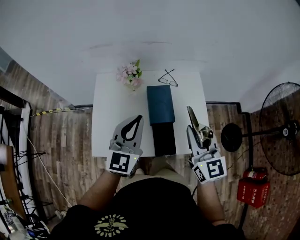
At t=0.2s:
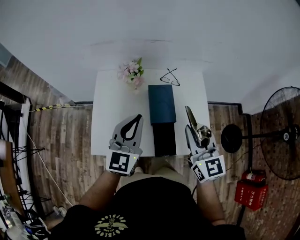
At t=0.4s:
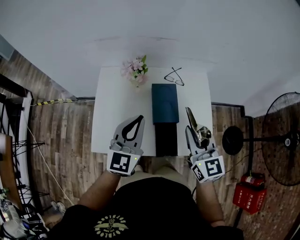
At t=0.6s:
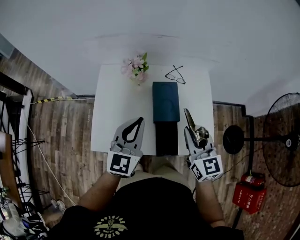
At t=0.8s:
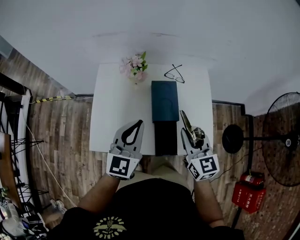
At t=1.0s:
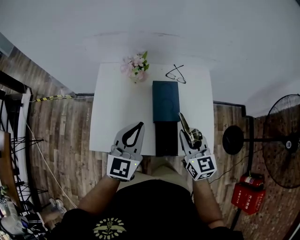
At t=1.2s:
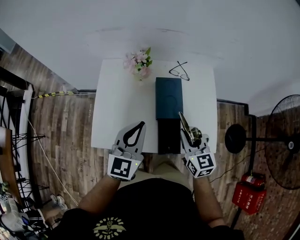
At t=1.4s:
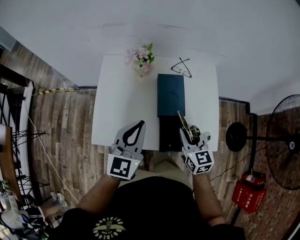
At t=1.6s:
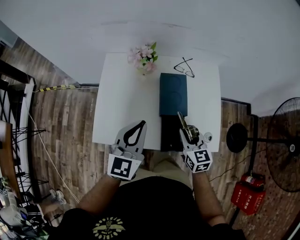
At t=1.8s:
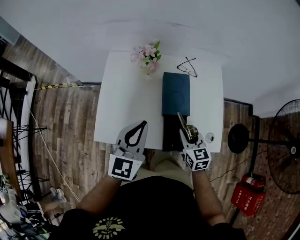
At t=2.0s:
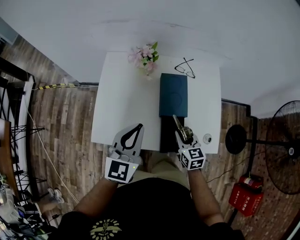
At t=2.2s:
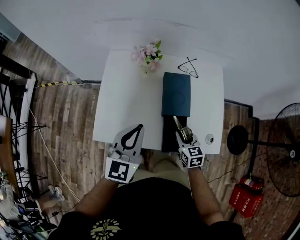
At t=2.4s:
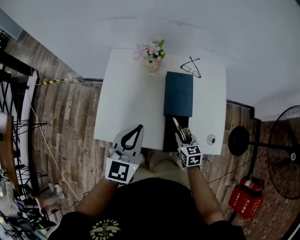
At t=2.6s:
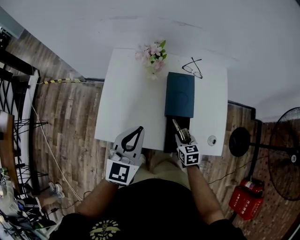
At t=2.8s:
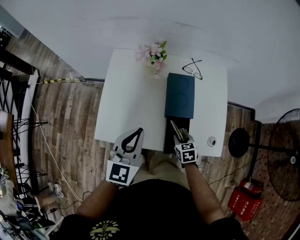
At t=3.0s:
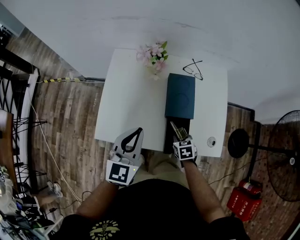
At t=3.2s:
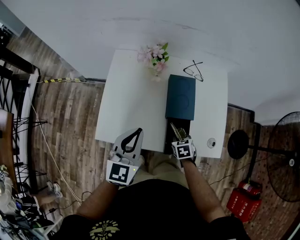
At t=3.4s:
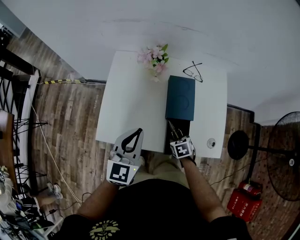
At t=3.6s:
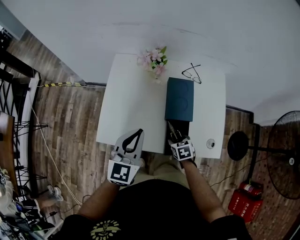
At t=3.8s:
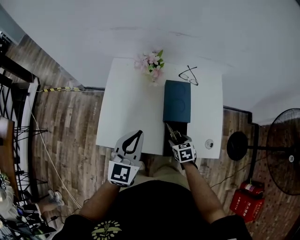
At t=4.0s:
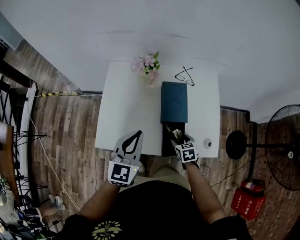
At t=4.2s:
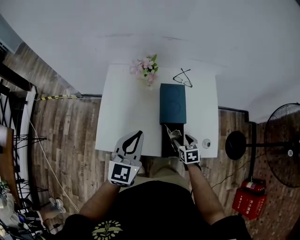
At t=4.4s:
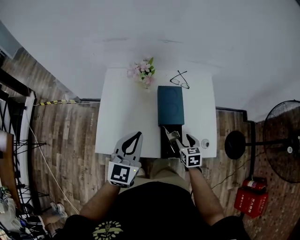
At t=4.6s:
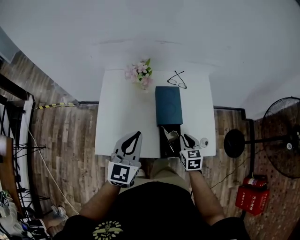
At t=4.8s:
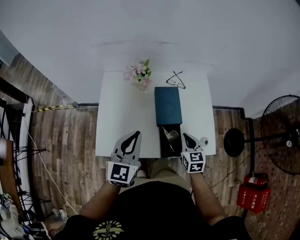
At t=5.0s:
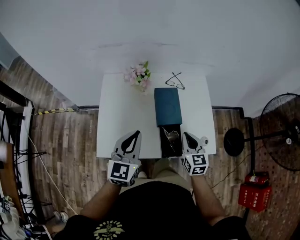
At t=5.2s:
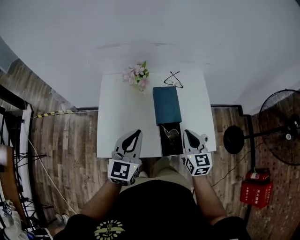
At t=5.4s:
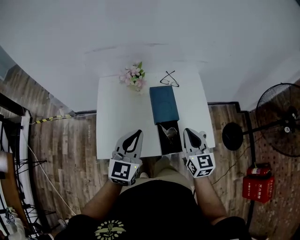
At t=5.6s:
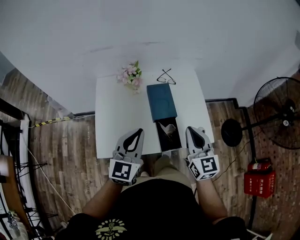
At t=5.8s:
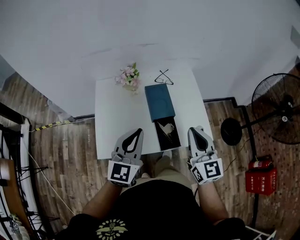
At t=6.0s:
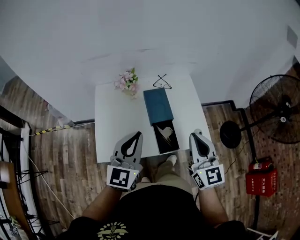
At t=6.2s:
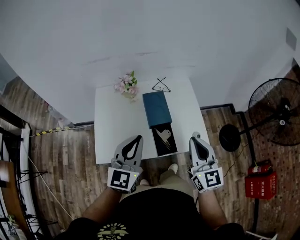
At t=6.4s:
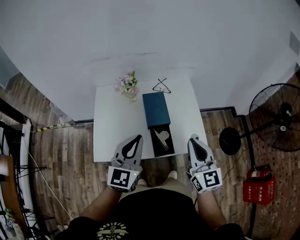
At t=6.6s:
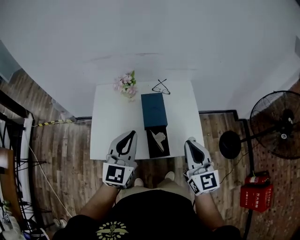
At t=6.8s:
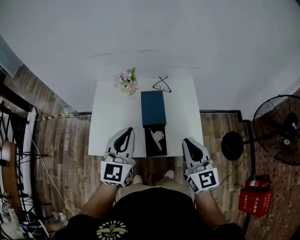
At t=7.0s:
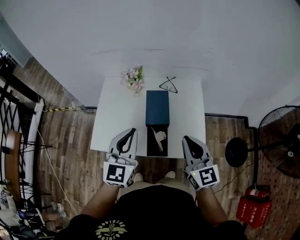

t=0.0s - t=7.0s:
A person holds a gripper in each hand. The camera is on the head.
t=0.0s - t=1.4s: The left gripper goes approximately 10 cm downward. Meanwhile the right gripper heads downward, covering approximately 20 cm, and turns by approximately 20 degrees.
t=1.4s - t=2.8s: The right gripper travels downward by about 20 cm, and turns by about 30 degrees, while the left gripper shifts by approximately 5 cm.
t=2.8s - t=4.2s: The right gripper moves approximately 5 cm, and opens up.
t=4.2s - t=5.6s: The left gripper moves about 5 cm; the right gripper heads upward, covering approximately 30 cm, tips its fingers upward by approximately 50 degrees, and closes up.
t=5.6s - t=7.0s: Both grippers move to the right, about 10 cm.

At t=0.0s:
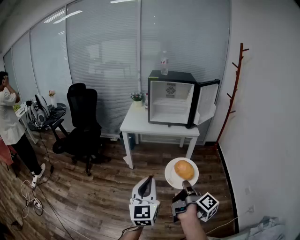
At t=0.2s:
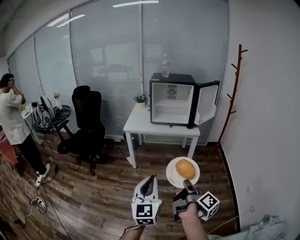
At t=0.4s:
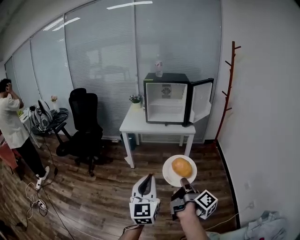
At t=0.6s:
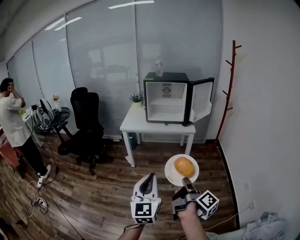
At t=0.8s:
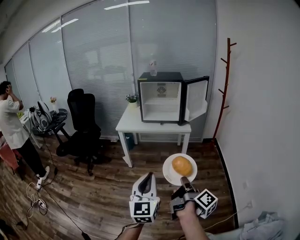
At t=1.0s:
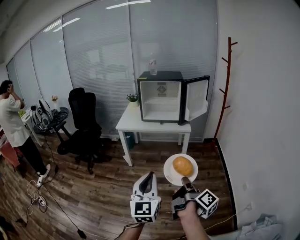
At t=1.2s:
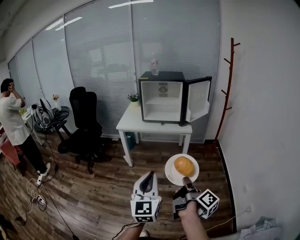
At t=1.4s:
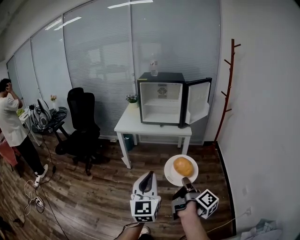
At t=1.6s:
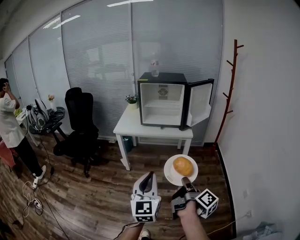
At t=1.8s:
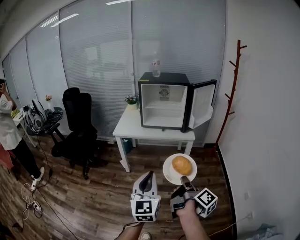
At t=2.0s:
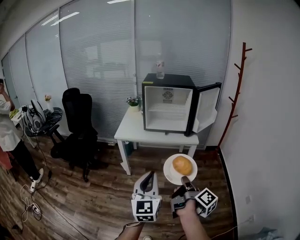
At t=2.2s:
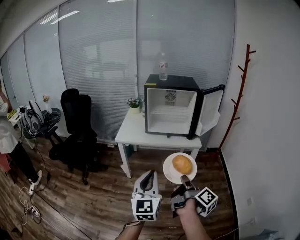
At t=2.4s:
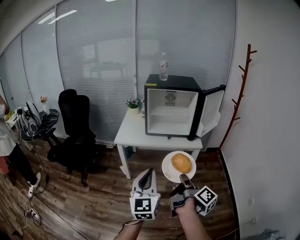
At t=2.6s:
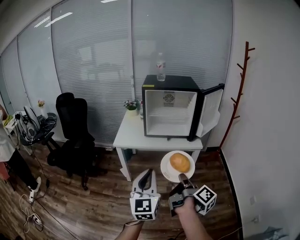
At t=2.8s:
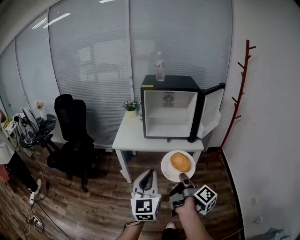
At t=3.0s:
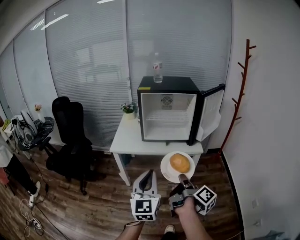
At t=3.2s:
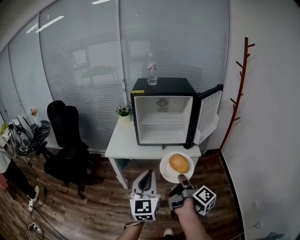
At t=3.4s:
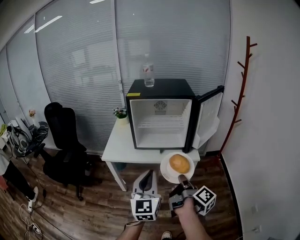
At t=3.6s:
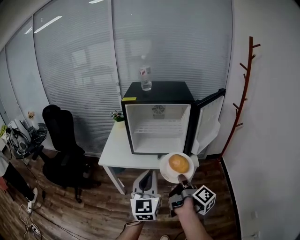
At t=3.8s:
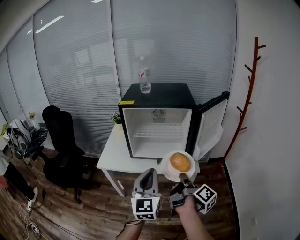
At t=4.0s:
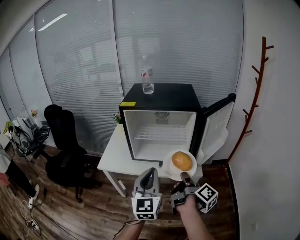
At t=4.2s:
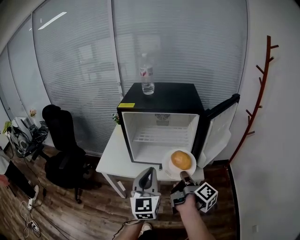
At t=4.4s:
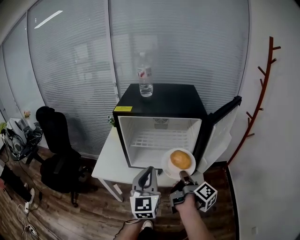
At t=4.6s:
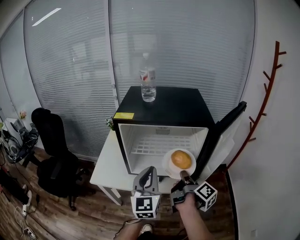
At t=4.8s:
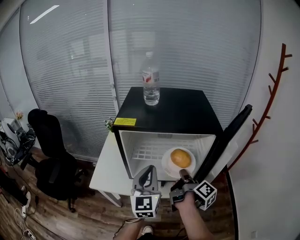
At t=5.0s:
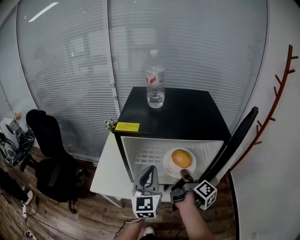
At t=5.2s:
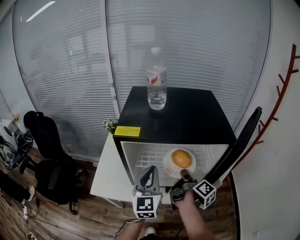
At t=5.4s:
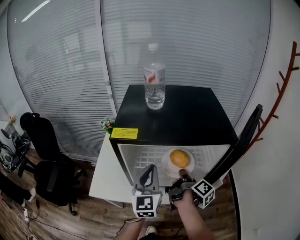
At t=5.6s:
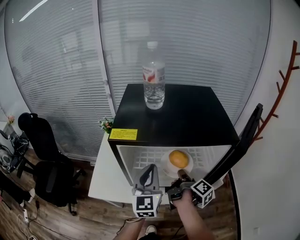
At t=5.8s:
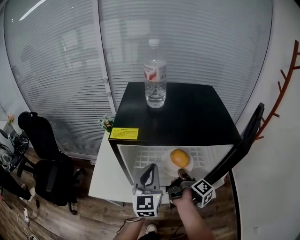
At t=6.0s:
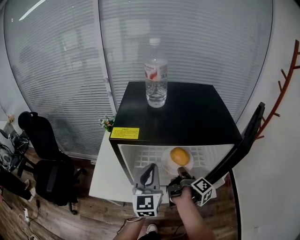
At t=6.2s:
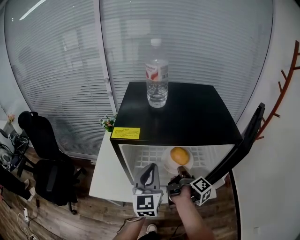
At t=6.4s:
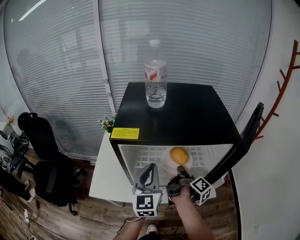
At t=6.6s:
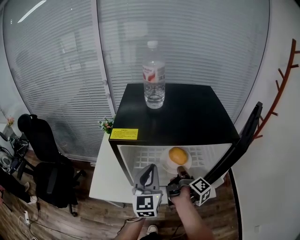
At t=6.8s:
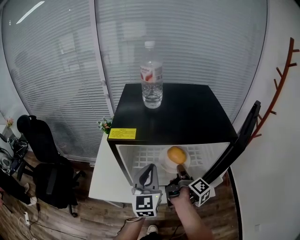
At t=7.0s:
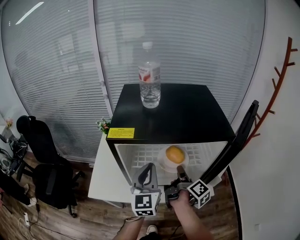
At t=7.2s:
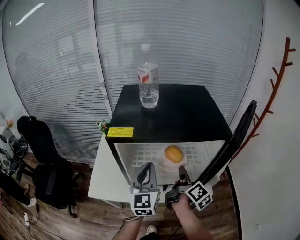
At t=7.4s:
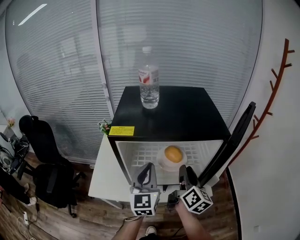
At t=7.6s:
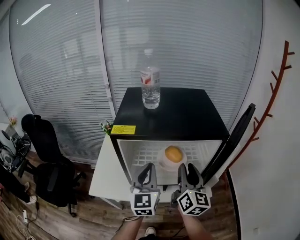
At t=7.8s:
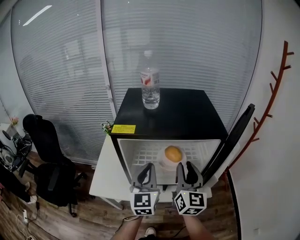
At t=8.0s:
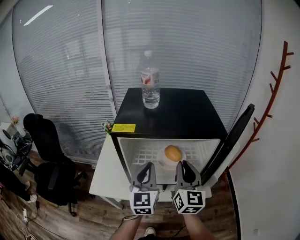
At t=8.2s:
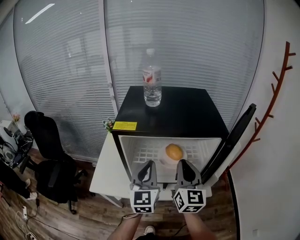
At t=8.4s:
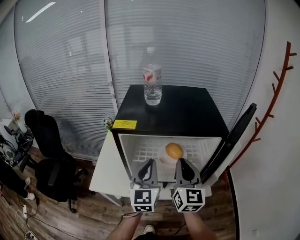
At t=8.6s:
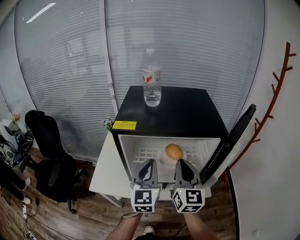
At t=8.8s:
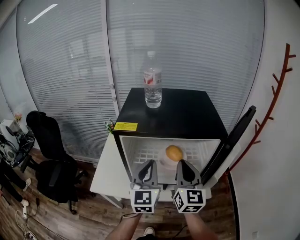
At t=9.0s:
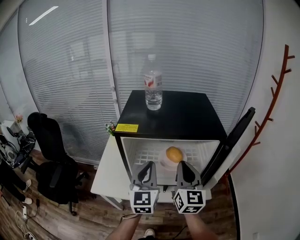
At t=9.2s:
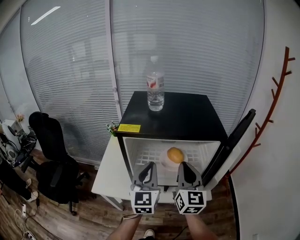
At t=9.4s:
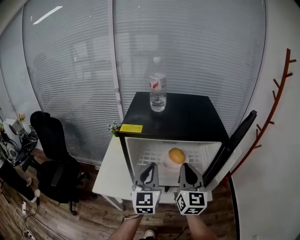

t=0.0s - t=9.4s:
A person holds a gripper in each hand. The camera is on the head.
t=0.0s - t=1.6s: The left gripper changes place by approximately 10 cm.
t=1.6s - t=3.2s: The left gripper shifts by about 30 cm.
t=3.2s - t=4.8s: The left gripper ends up some 35 cm from where it was.
t=4.8s - t=6.2s: The left gripper ends up about 10 cm from where it was.

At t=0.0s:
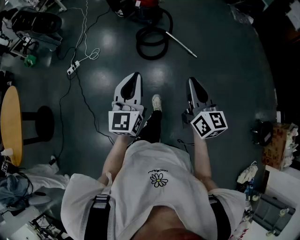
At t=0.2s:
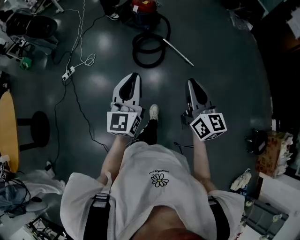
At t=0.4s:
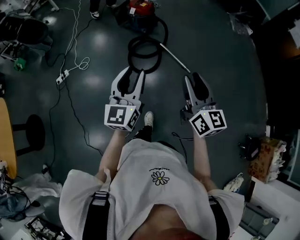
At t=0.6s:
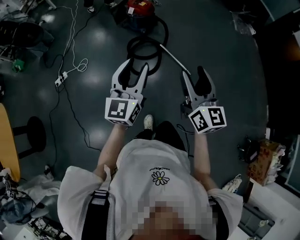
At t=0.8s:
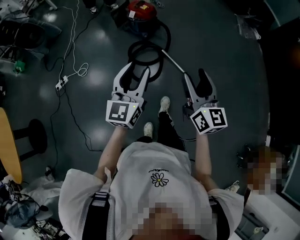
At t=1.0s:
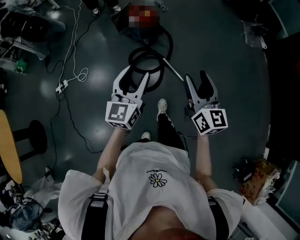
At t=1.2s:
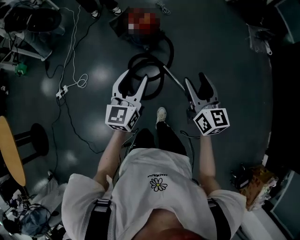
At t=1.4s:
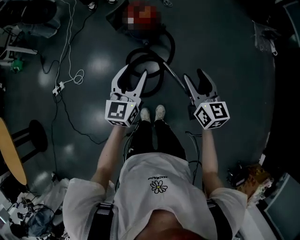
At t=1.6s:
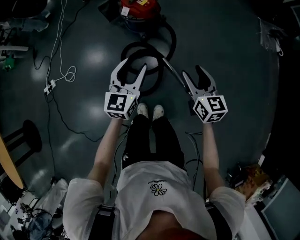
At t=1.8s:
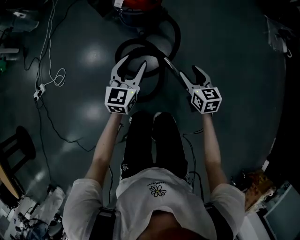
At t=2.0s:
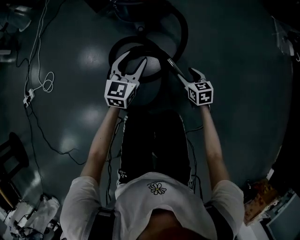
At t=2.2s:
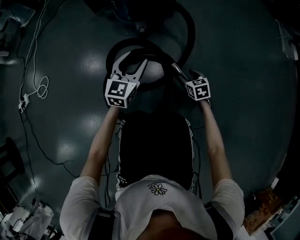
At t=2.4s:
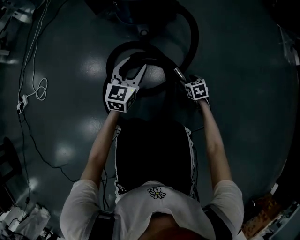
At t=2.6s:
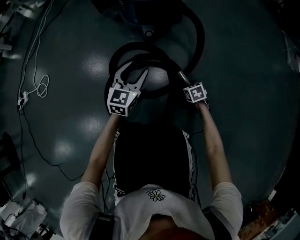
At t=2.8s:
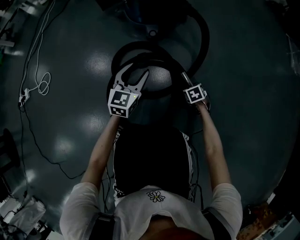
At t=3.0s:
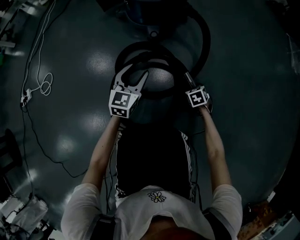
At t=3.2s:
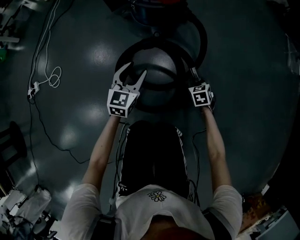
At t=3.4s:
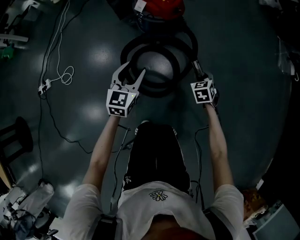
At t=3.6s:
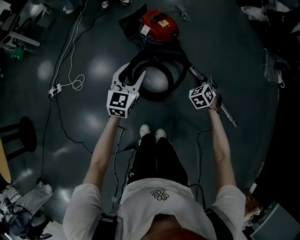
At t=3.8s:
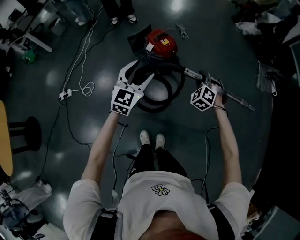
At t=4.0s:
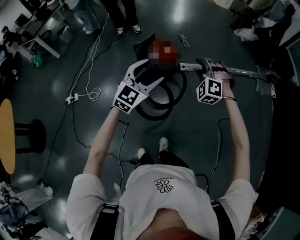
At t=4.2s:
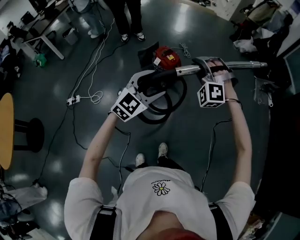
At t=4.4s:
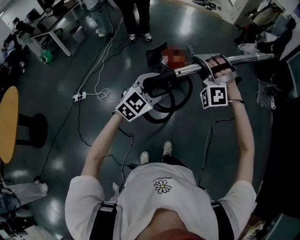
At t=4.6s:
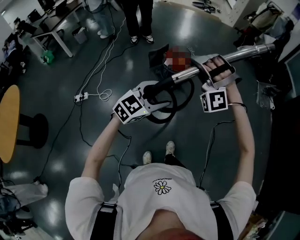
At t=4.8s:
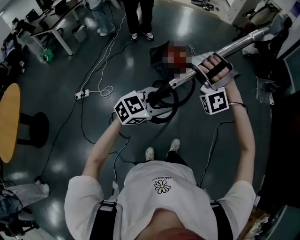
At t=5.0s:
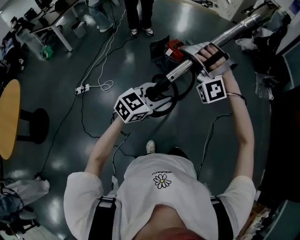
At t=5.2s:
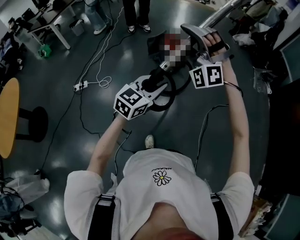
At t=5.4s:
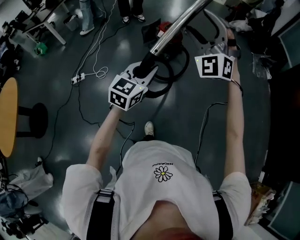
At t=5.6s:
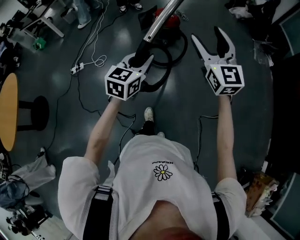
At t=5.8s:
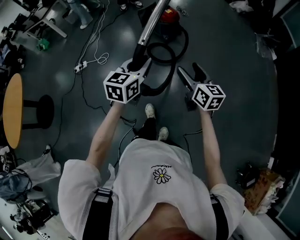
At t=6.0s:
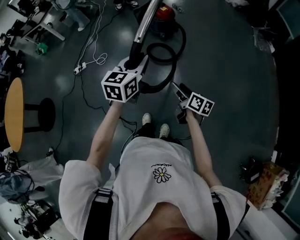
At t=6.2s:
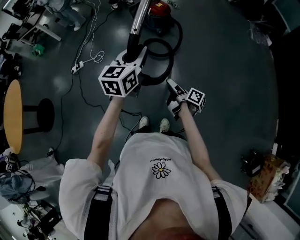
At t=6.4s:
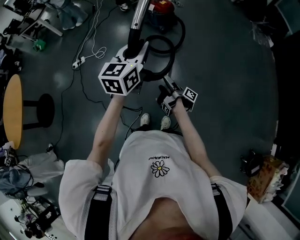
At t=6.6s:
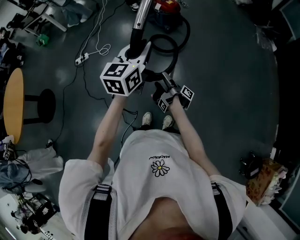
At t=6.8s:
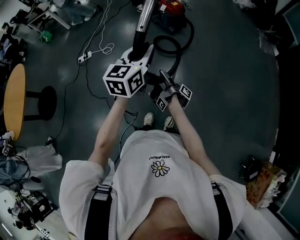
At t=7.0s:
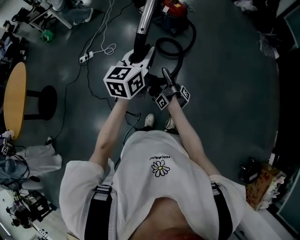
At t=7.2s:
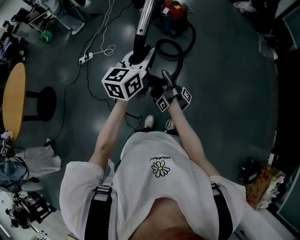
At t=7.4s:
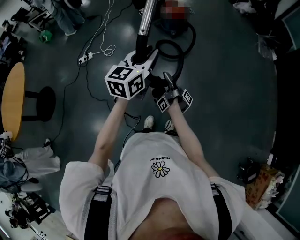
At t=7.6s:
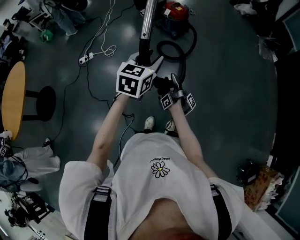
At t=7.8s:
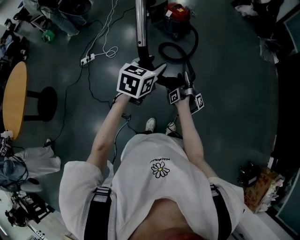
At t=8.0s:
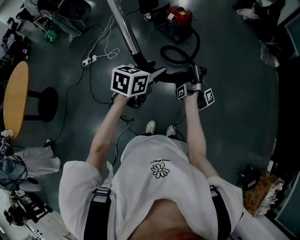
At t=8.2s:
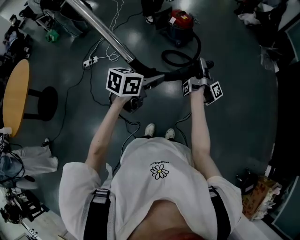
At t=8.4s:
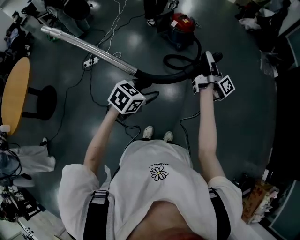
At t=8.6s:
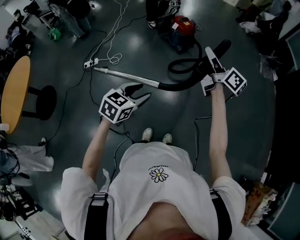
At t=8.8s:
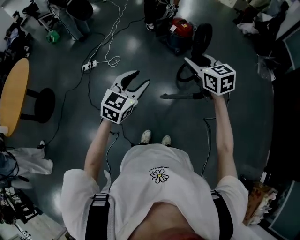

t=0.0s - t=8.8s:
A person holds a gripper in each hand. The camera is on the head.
t=0.0s - t=1.4s: The pair of grippers is taken forward, roughly 80 cm. The right gripper opens up, while the left gripper opens its fingers.
t=1.4s - t=3.0s: The grippers both shift downward by about 80 cm. The right gripper tips its fingers downward by approximately 50 degrees, and closes.
t=3.0s - t=4.4s: The grippers both shift upward by approximately 1 m. The right gripper rotates around the line of its fingers by roughly 90 degrees, counterclockwise from behind, while the left gripper turns by roughly 30 degrees.
t=4.4s - t=5.8s: The grippers both shift backward by about 35 cm. The left gripper turns by some 40 degrees, and closes. The right gripper twists approximately 120 degrees clockwise, seen from behind, and opens up.
t=5.8s - t=7.4s: The right gripper goes approximately 25 cm to the left, downward and backward, rotates around the line of its fingers by approximately 110 degrees, clockwise from behind, and closes up. The left gripper shifts approximately 10 cm backward, to the left and upward.
t=7.4s - t=8.8s: The right gripper shifts about 25 cm upward, and rotates around the line of its fingers by approximately 130 degrees, counterclockwise from behind; the left gripper travels downward and back again, approximately 10 cm each way, swivels roughly 20 degrees, and opens.
